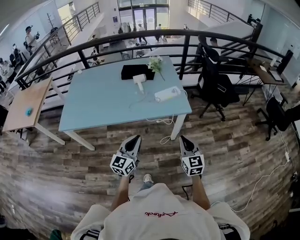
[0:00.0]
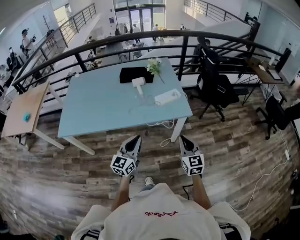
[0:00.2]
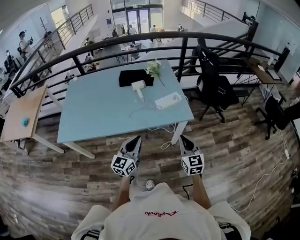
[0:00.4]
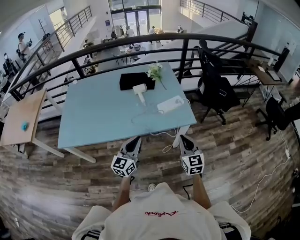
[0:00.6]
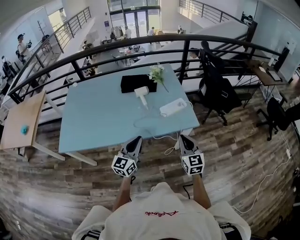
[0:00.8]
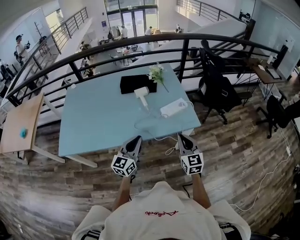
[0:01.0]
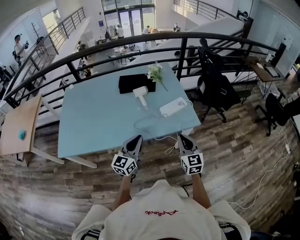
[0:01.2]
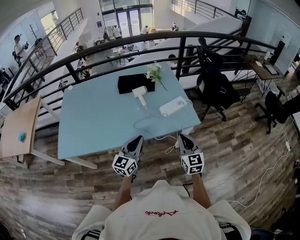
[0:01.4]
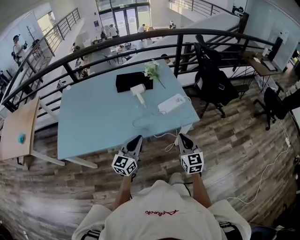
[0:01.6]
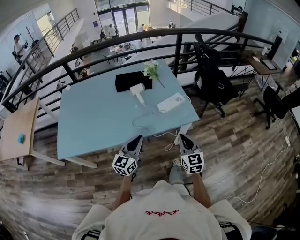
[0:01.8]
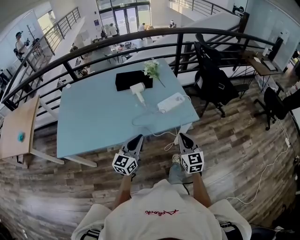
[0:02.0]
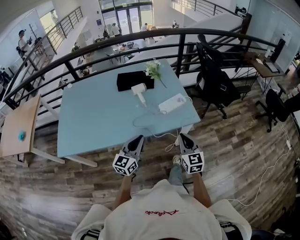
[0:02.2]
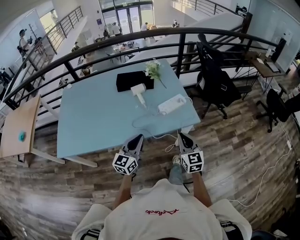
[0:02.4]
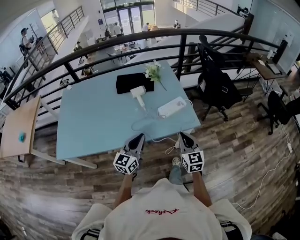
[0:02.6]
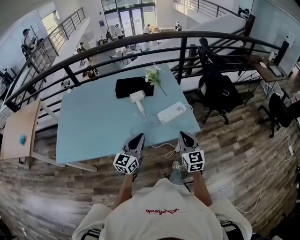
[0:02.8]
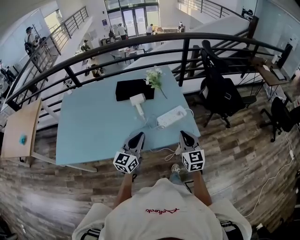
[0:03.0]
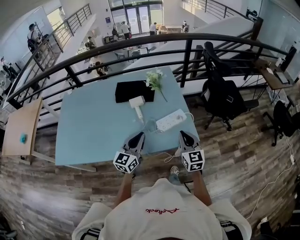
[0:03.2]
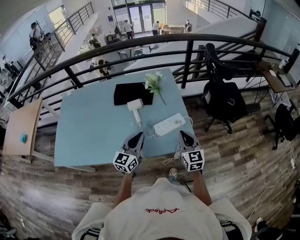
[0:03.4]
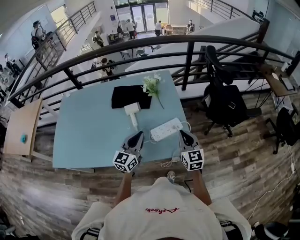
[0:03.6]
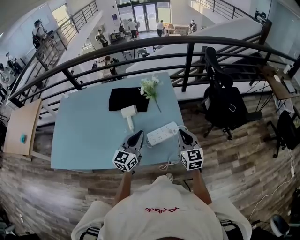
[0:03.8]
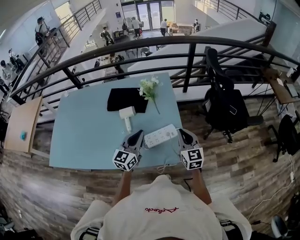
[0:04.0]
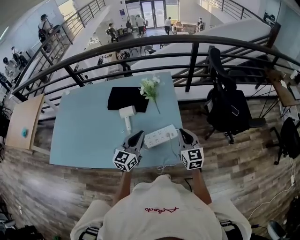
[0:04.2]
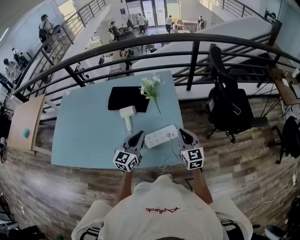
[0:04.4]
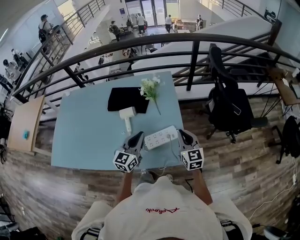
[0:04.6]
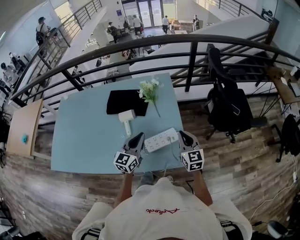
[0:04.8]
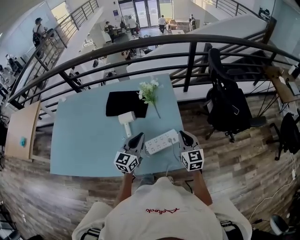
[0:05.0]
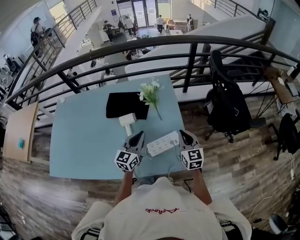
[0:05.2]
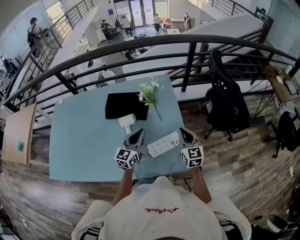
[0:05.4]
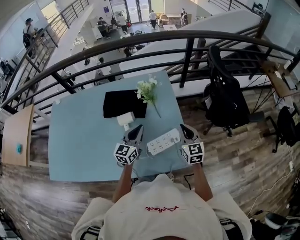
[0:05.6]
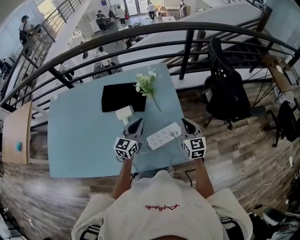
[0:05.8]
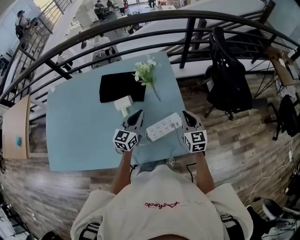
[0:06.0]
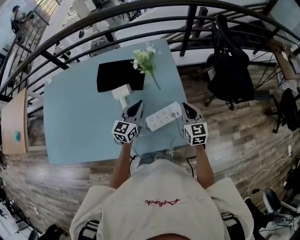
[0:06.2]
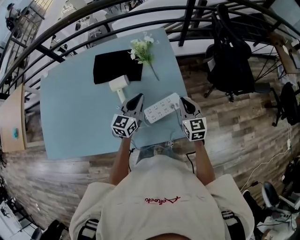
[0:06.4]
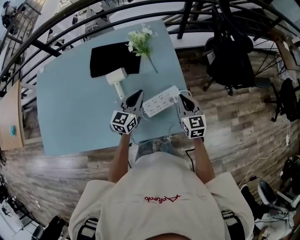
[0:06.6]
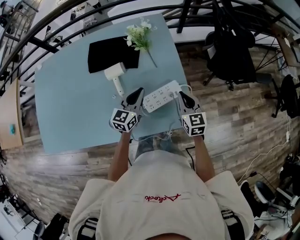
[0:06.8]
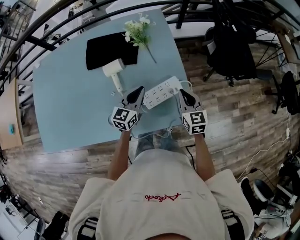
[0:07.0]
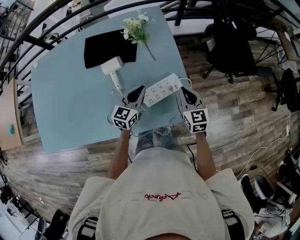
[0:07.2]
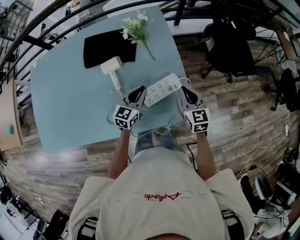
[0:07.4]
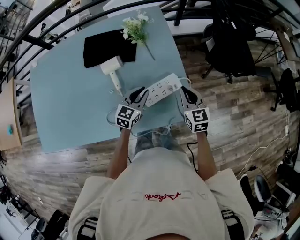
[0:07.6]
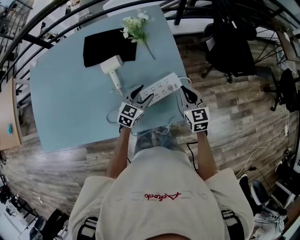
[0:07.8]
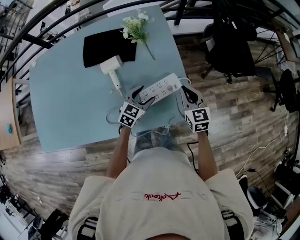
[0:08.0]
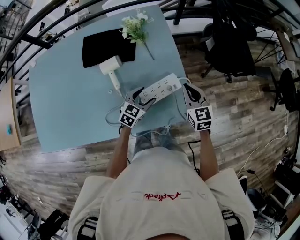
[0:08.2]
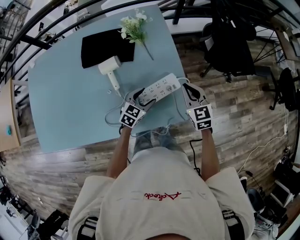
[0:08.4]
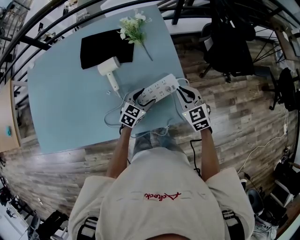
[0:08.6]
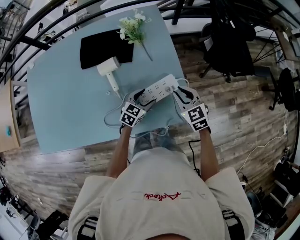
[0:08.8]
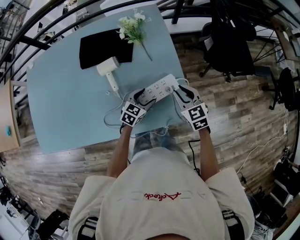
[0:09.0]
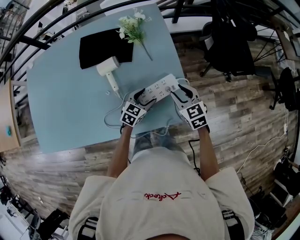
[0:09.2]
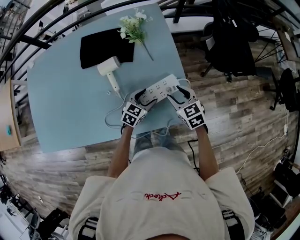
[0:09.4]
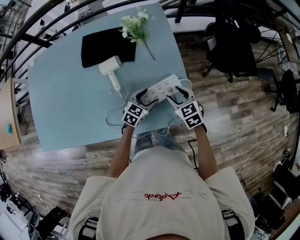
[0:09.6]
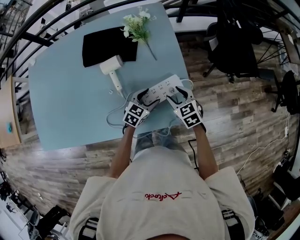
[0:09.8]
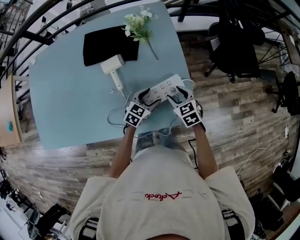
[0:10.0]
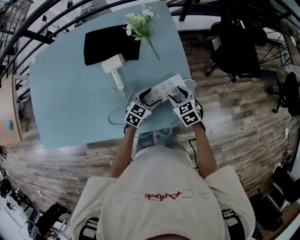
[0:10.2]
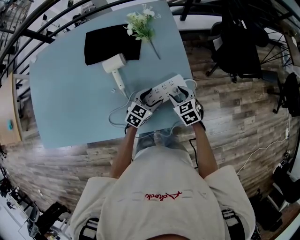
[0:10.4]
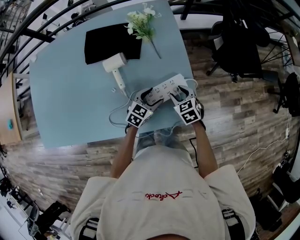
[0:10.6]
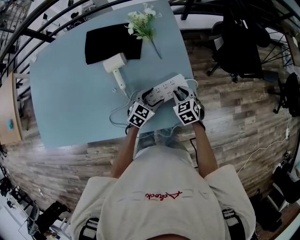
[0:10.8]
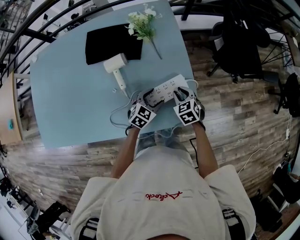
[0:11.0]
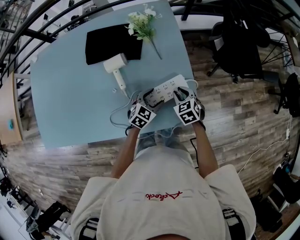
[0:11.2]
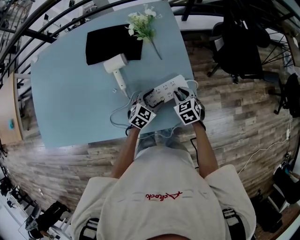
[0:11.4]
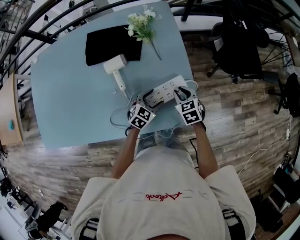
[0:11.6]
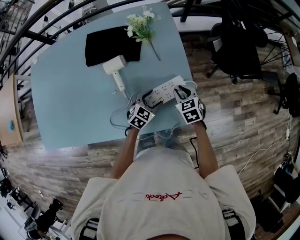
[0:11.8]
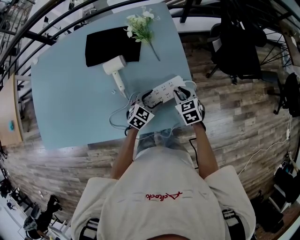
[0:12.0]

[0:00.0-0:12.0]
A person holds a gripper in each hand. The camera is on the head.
0:00.0 to 0:01.6: Both grippers travel together forward and to the left, approximately 20 cm.
0:01.6 to 0:03.0: Both grippers travel together forward, about 10 cm.
0:03.0 to 0:04.4: The two grippers go approximately 25 cm forward and to the right.
0:04.4 to 0:06.0: The left gripper moves forward and downward, roughly 10 cm; the right gripper heads forward, covering some 5 cm.
0:06.0 to 0:07.6: The left gripper travels downward and to the right by approximately 15 cm. Meanwhile the right gripper moves downward, roughly 5 cm.
0:07.6 to 0:09.0: The left gripper is displaced downward by approximately 5 cm, and opens.
0:09.0 to 0:10.4: The right gripper shifts some 10 cm downward, and opens its fingers.
0:10.4 to 0:12.0: The right gripper closes its fingers.

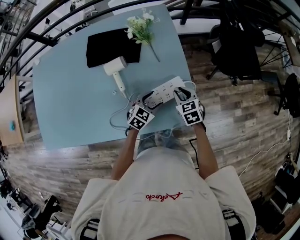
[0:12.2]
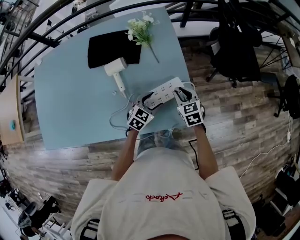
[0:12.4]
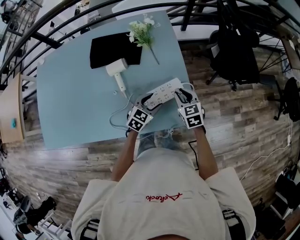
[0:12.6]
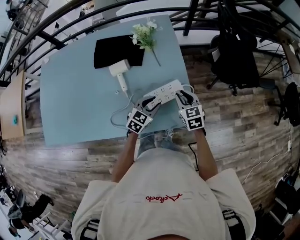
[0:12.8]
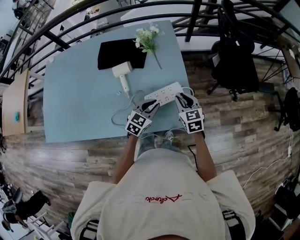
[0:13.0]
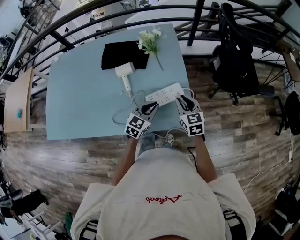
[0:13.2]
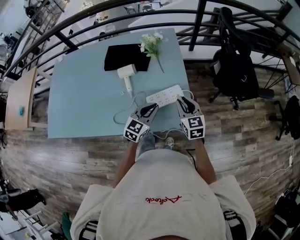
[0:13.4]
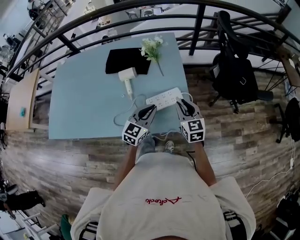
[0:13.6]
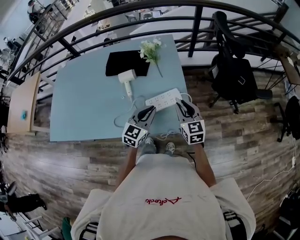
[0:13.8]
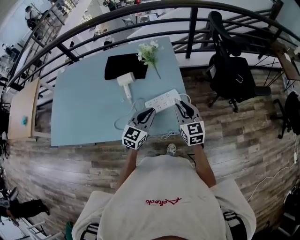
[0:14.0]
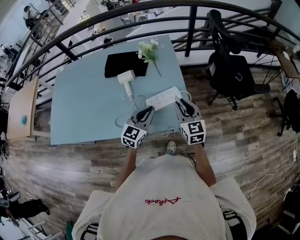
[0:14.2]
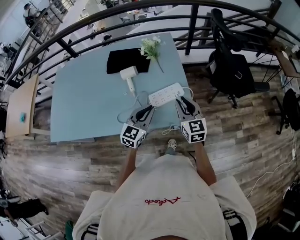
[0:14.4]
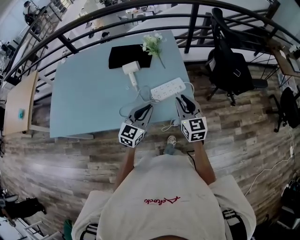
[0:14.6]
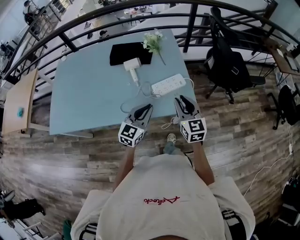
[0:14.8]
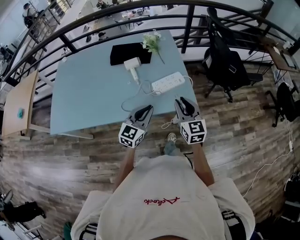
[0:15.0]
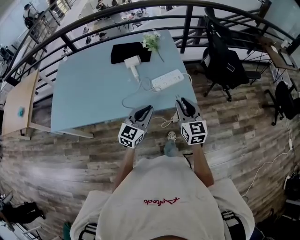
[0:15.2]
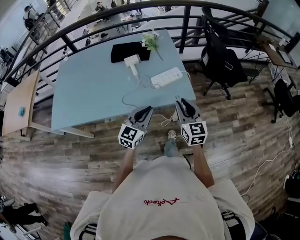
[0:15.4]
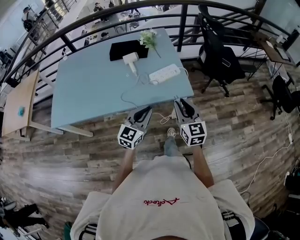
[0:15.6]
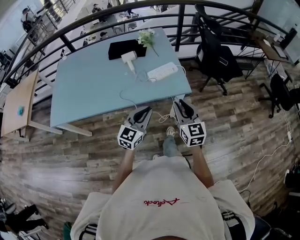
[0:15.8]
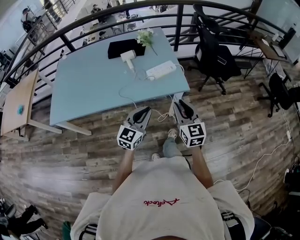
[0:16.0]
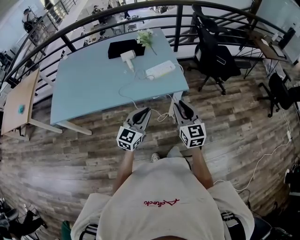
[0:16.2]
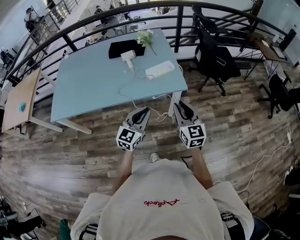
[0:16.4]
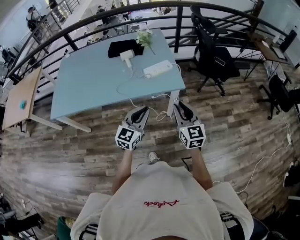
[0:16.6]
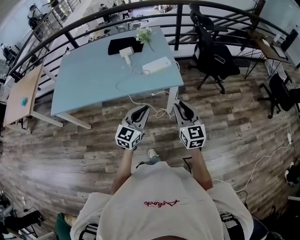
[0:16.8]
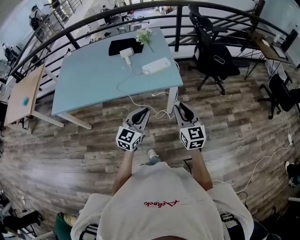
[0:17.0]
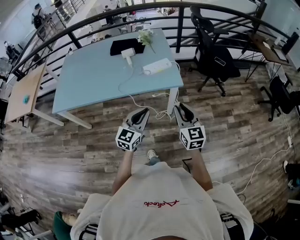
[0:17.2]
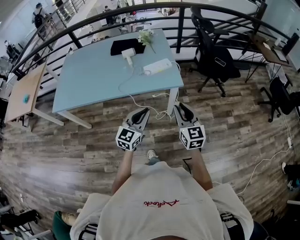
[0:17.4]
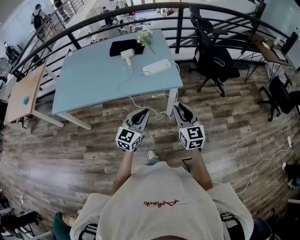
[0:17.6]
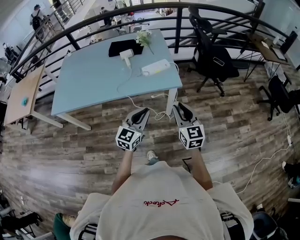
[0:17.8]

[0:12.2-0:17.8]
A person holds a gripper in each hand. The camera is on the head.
0:12.2 to 0:13.6: The grippers both shift upward and backward by approximately 15 cm. The left gripper changes its angle by approximately 30 degrees, and closes its fingers, while the right gripper swivels about 30 degrees.
0:13.6 to 0:15.0: The grippers both shift backward by some 15 cm.
0:15.0 to 0:16.4: The grippers both shift backward by approximately 20 cm.
0:16.4 to 0:17.8: The right gripper heads to the right, covering some 5 cm. The left gripper changes place by roughly 5 cm.

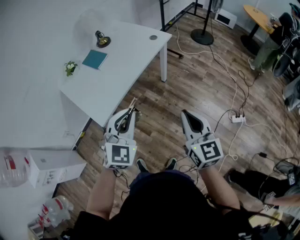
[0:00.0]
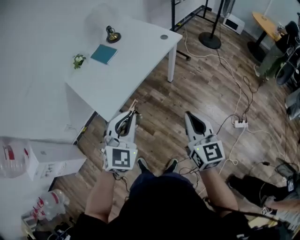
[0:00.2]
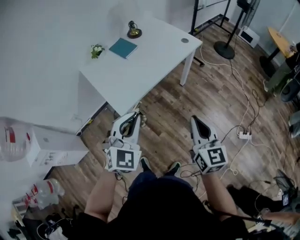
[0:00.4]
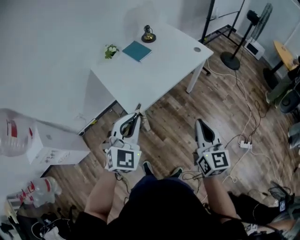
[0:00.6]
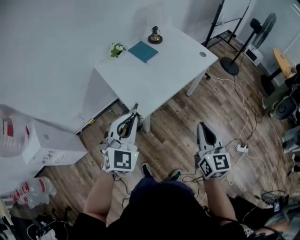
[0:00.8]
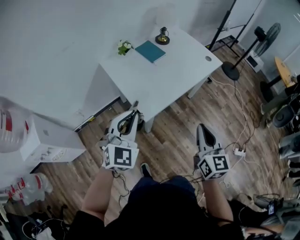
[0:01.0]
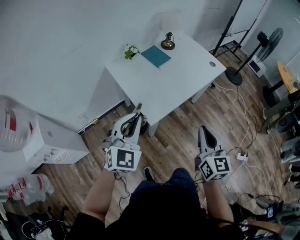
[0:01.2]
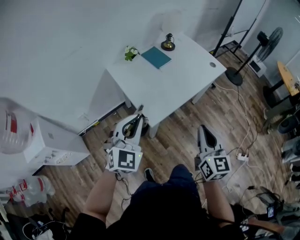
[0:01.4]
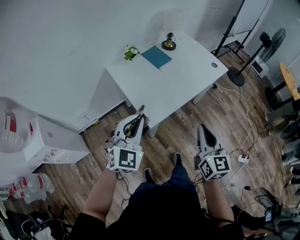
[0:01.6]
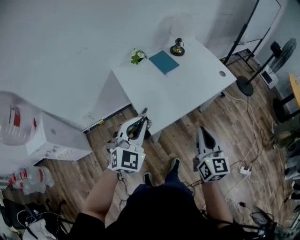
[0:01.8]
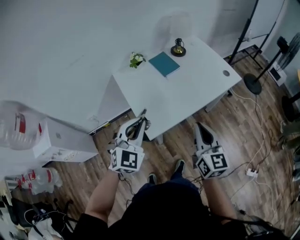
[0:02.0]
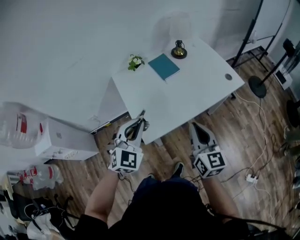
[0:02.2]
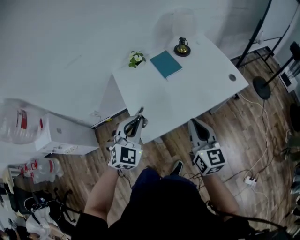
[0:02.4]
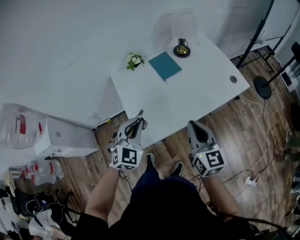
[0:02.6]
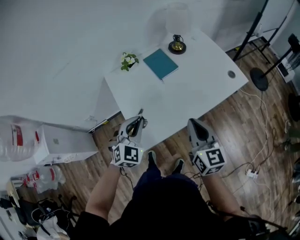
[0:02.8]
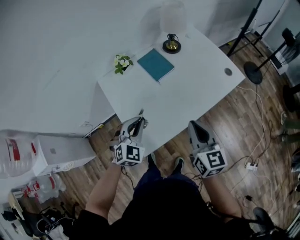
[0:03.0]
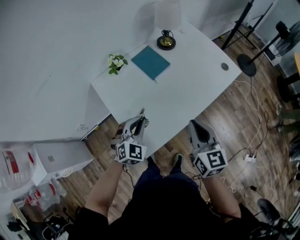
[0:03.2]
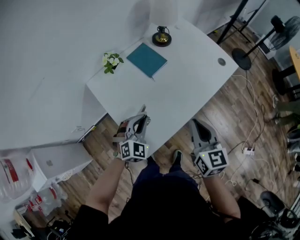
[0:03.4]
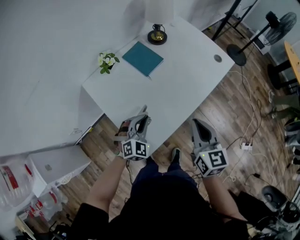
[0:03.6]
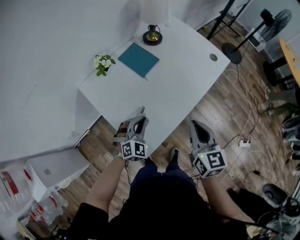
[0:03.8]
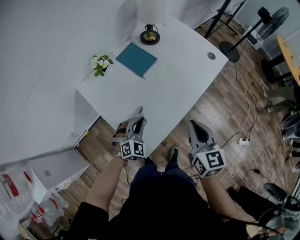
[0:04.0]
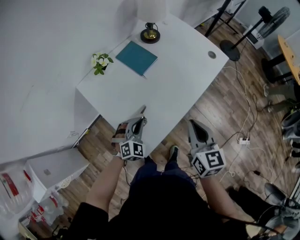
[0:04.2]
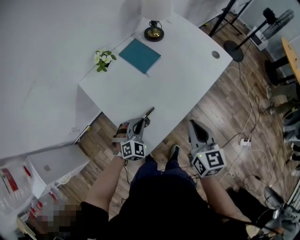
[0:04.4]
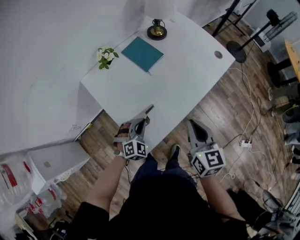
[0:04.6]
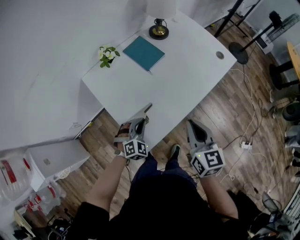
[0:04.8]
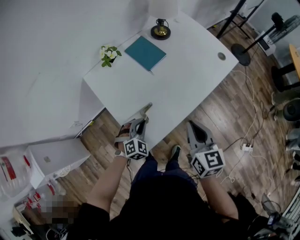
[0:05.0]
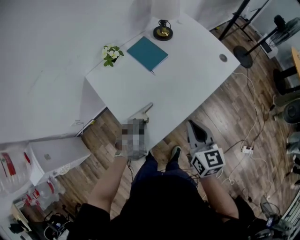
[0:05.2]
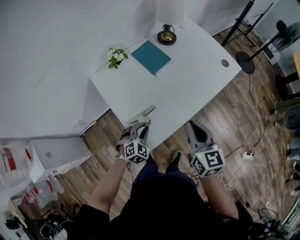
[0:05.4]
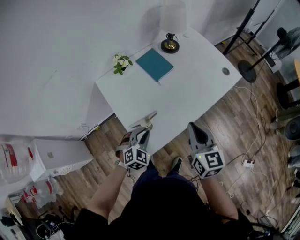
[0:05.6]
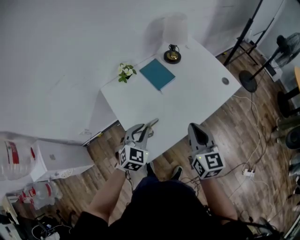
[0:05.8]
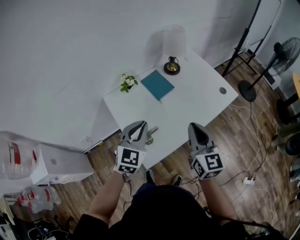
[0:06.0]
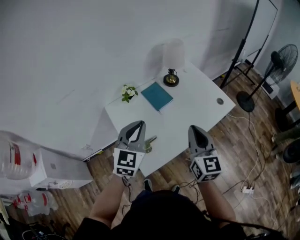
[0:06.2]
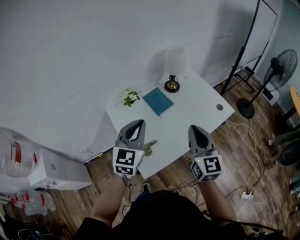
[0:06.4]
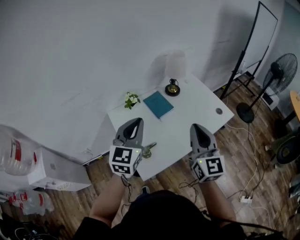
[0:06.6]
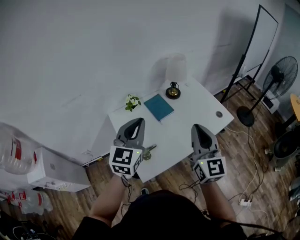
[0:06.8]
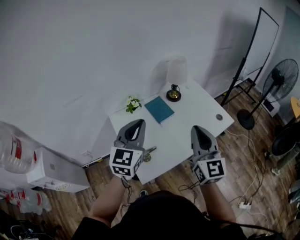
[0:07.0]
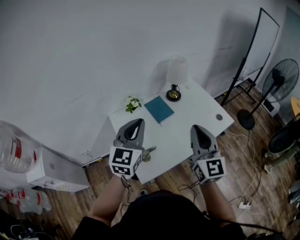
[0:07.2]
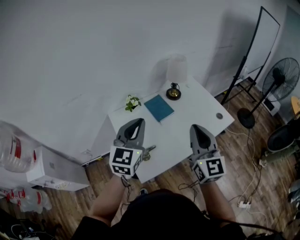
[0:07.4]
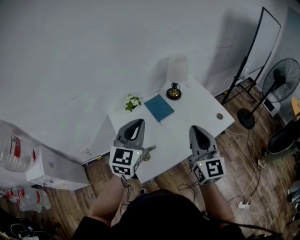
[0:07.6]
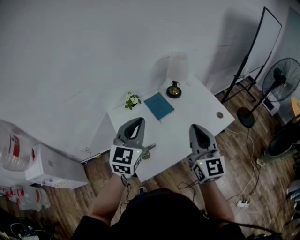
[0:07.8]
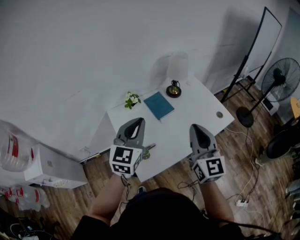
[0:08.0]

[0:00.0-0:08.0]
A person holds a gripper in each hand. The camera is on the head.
0:00.0 to 0:01.6: Both grippers travel together to the left, some 35 cm.
0:01.6 to 0:03.2: The right gripper shifts about 25 cm forward; the left gripper heads forward and downward, covering some 30 cm.
0:03.2 to 0:04.8: The left gripper travels downward by about 10 cm.
0:04.8 to 0:06.4: The left gripper goes approximately 35 cm upward, and tips its fingers upward by about 30 degrees, while the right gripper heads upward, covering about 20 cm, and rotates roughly 20 degrees.
0:06.4 to 0:08.0: The grippers stay close to where they were, moving slightly.
